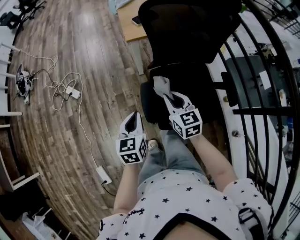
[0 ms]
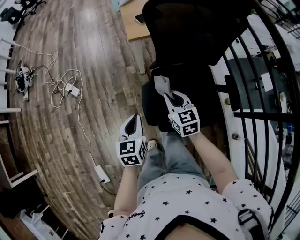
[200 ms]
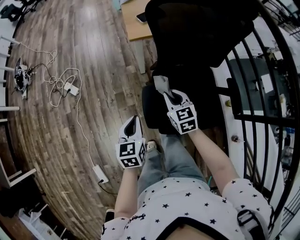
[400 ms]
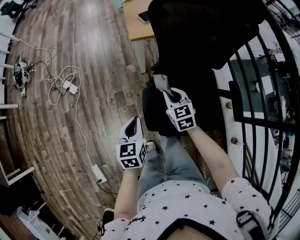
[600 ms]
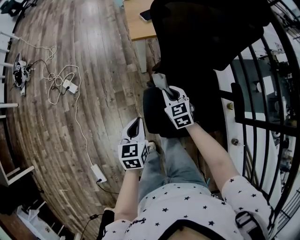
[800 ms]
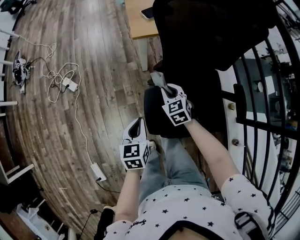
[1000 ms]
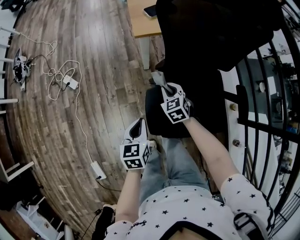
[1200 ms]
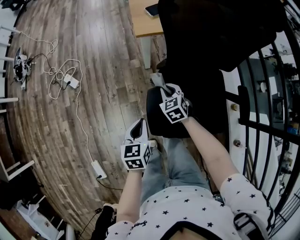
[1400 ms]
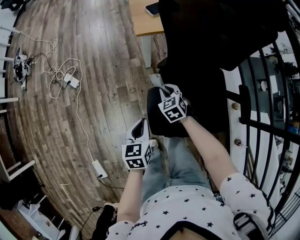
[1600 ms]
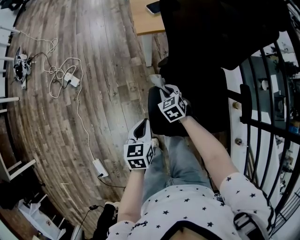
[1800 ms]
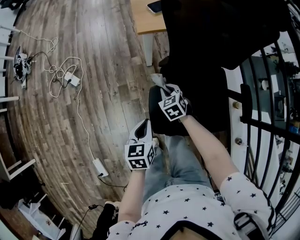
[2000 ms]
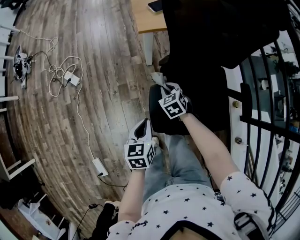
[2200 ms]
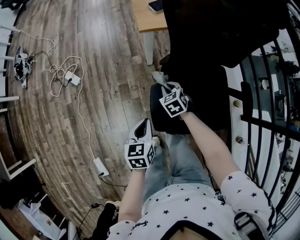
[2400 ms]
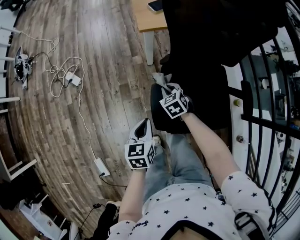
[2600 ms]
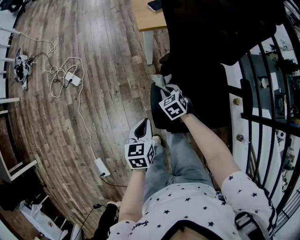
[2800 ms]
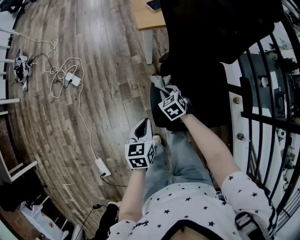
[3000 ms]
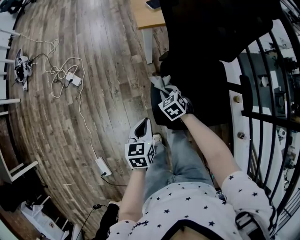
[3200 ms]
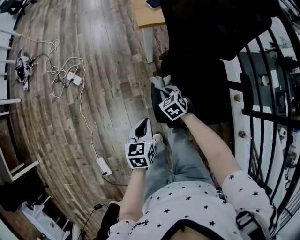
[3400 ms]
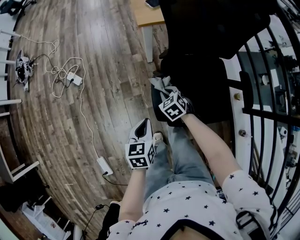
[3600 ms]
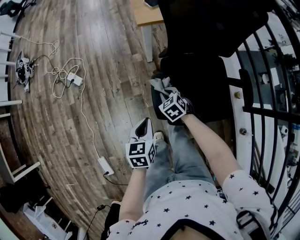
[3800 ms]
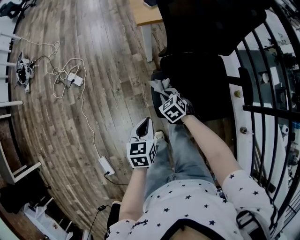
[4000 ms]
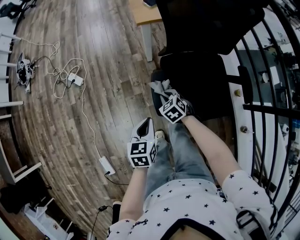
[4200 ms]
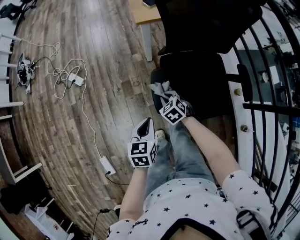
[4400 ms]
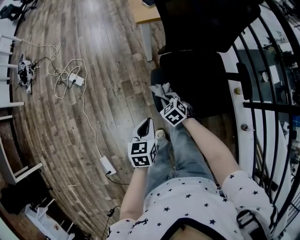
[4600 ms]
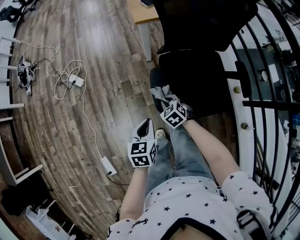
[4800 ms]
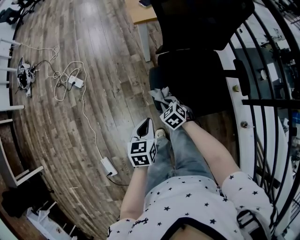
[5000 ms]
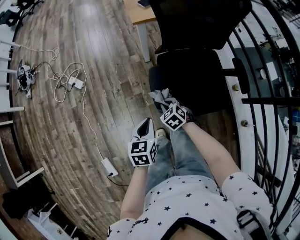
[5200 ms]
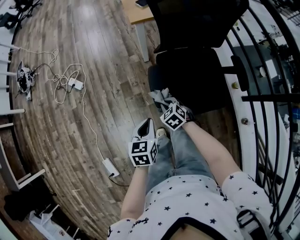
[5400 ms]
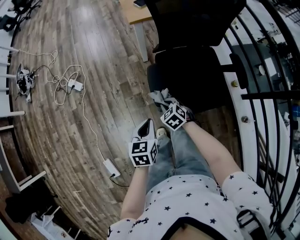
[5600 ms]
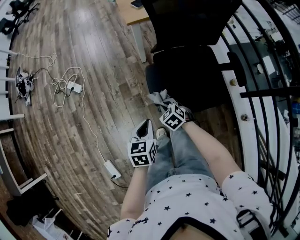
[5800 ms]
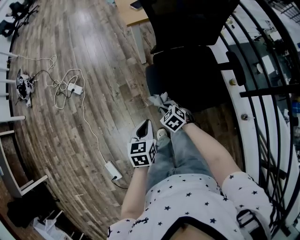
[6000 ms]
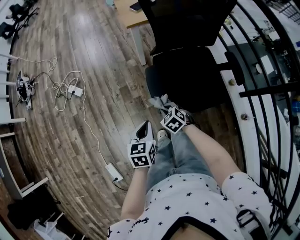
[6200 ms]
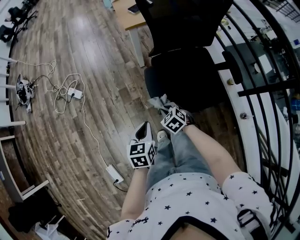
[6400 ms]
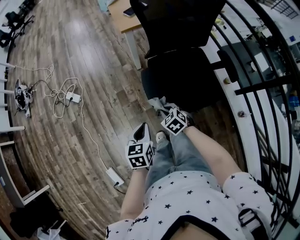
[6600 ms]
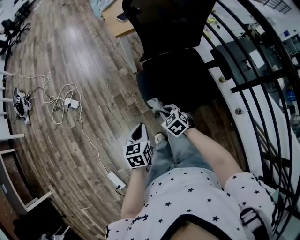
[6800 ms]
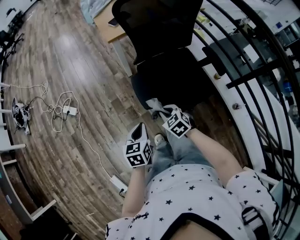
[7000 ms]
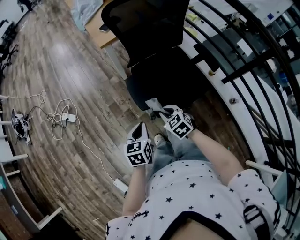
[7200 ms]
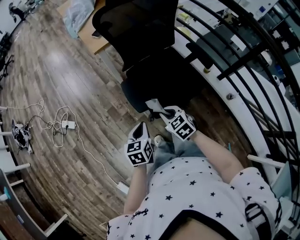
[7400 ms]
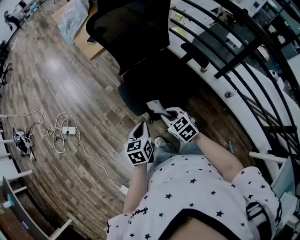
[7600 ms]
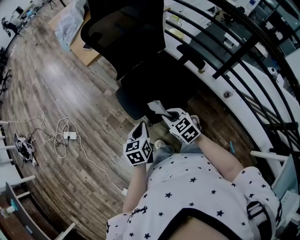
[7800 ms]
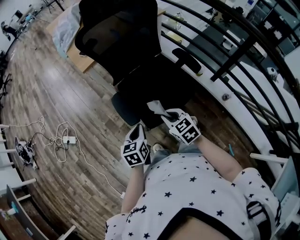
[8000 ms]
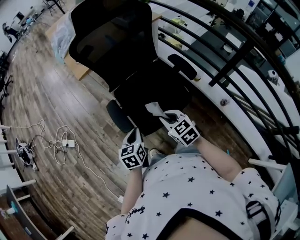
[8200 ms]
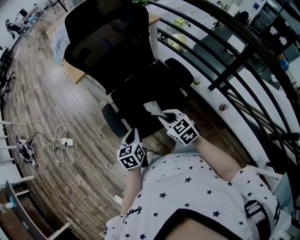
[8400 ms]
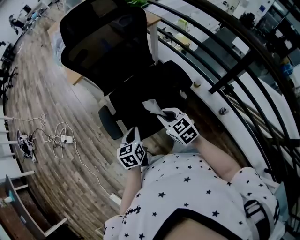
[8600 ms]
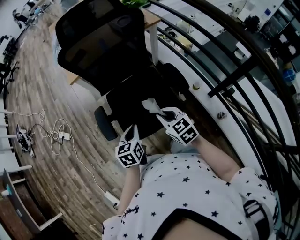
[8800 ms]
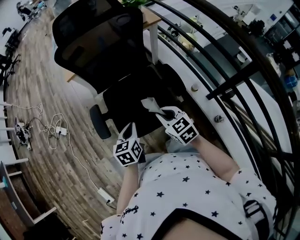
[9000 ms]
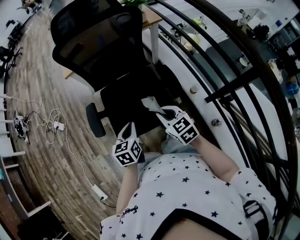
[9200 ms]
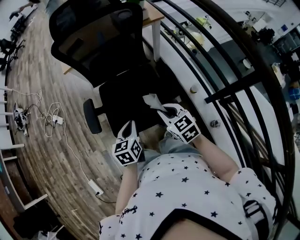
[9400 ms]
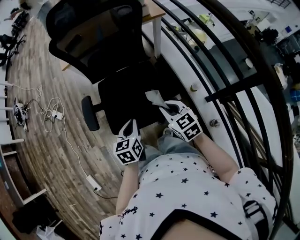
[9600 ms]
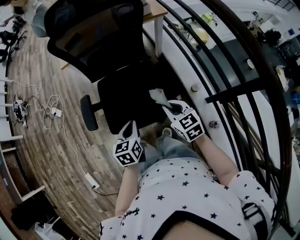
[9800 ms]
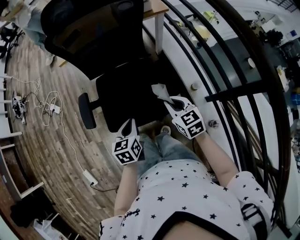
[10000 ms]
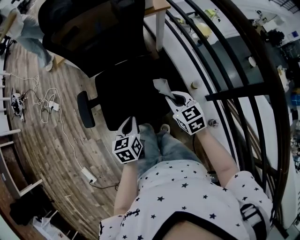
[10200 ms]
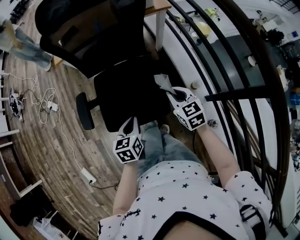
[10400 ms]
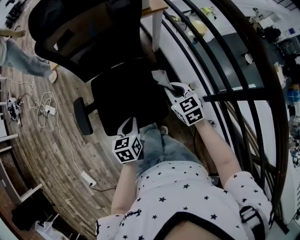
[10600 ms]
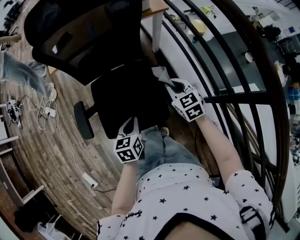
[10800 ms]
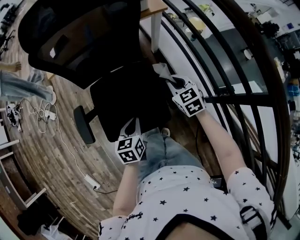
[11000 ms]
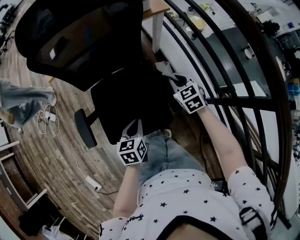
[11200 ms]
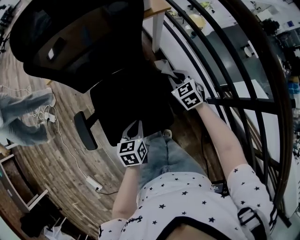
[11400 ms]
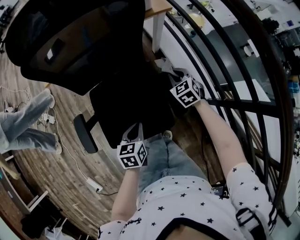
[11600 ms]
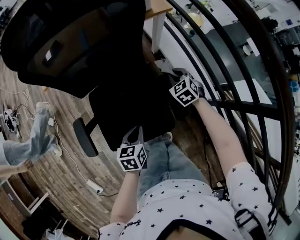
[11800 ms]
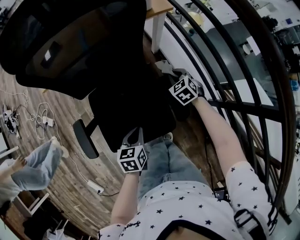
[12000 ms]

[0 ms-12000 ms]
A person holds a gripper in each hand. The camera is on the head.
0 ms to 1600 ms: The left gripper goes about 10 cm downward; the right gripper goes roughly 25 cm downward and forward, and turns by some 30 degrees.
1600 ms to 3000 ms: The grippers move only a little.
3000 ms to 4400 ms: The left gripper travels backward by some 5 cm. Meanwhile the right gripper is displaced backward by about 10 cm.
4400 ms to 6000 ms: The right gripper moves backward, about 10 cm.
6000 ms to 7600 ms: The left gripper goes approximately 5 cm to the right, while the right gripper heads upward, to the right and backward, covering roughly 20 cm, and rotates roughly 30 degrees.
7600 ms to 9000 ms: The two grippers go approximately 25 cm to the right.
9000 ms to 10400 ms: The right gripper shifts about 15 cm to the right and forward. The left gripper moves to the right, roughly 10 cm.
10400 ms to 12000 ms: The left gripper moves forward and downward, about 10 cm. The right gripper is displaced forward and downward by about 25 cm, and swivels some 30 degrees.

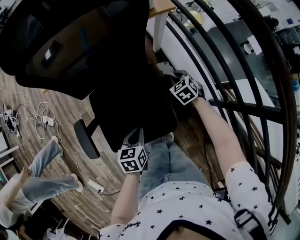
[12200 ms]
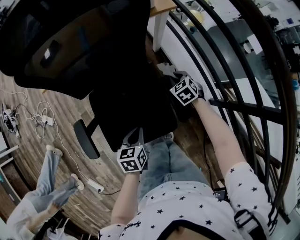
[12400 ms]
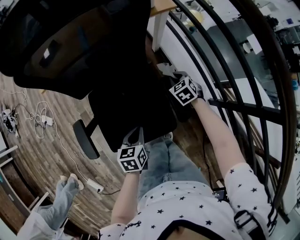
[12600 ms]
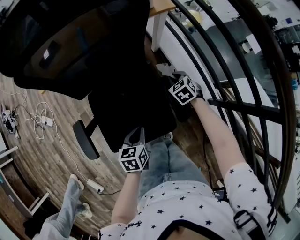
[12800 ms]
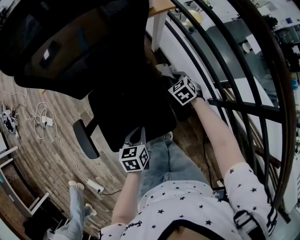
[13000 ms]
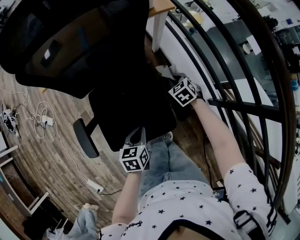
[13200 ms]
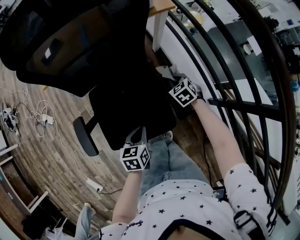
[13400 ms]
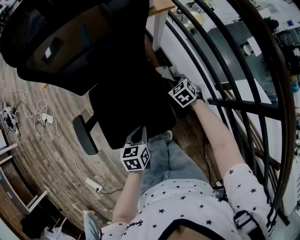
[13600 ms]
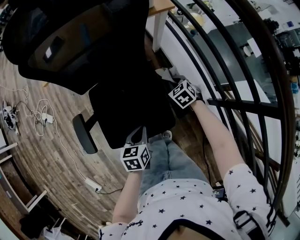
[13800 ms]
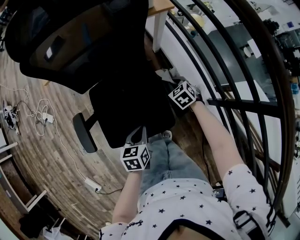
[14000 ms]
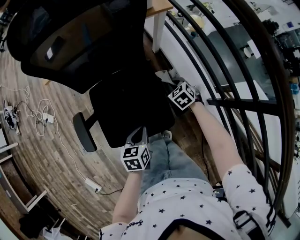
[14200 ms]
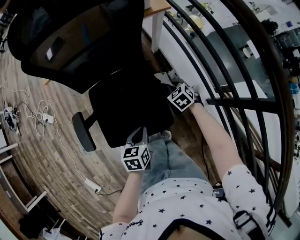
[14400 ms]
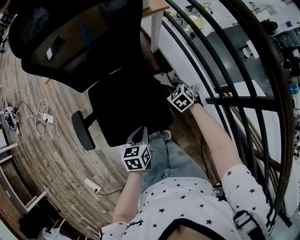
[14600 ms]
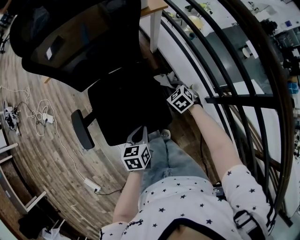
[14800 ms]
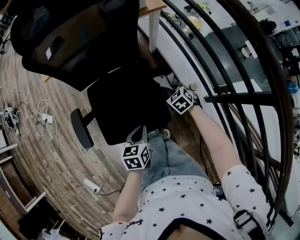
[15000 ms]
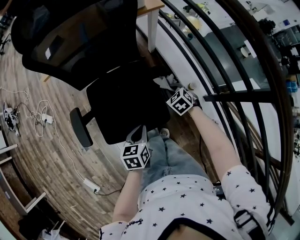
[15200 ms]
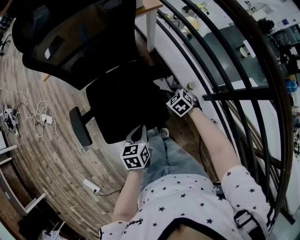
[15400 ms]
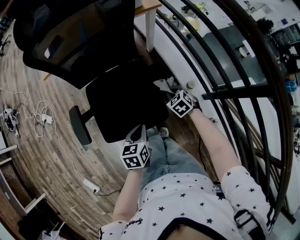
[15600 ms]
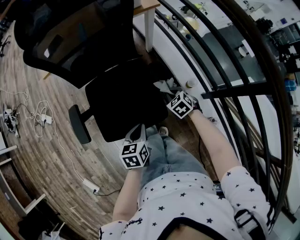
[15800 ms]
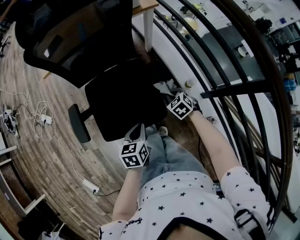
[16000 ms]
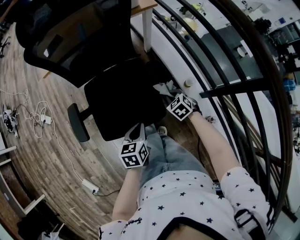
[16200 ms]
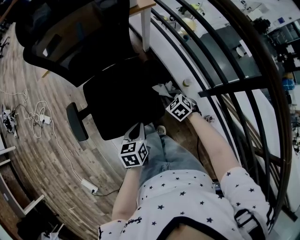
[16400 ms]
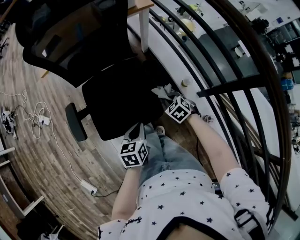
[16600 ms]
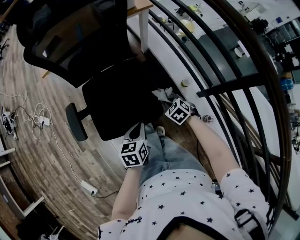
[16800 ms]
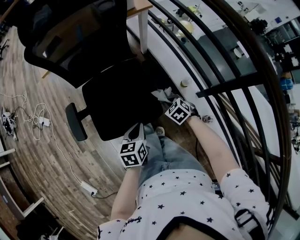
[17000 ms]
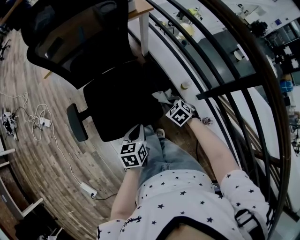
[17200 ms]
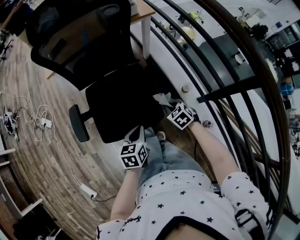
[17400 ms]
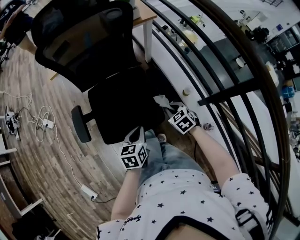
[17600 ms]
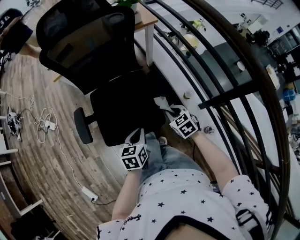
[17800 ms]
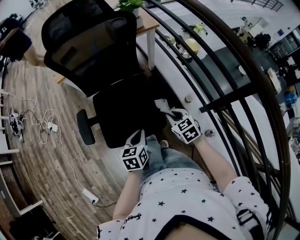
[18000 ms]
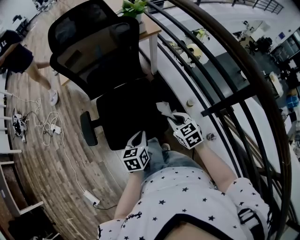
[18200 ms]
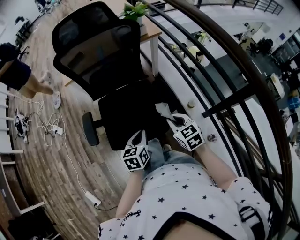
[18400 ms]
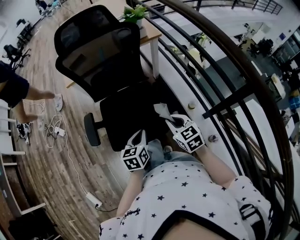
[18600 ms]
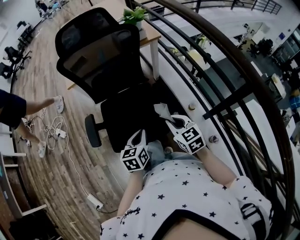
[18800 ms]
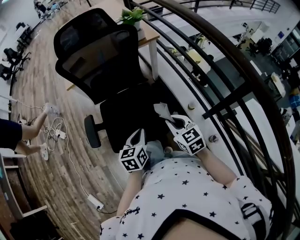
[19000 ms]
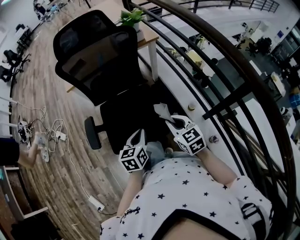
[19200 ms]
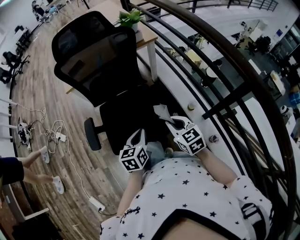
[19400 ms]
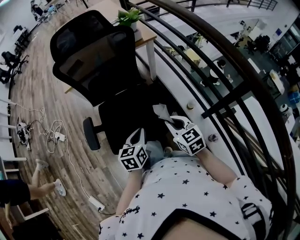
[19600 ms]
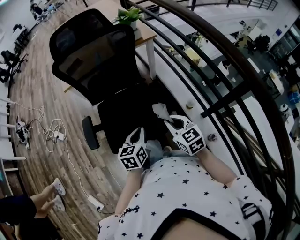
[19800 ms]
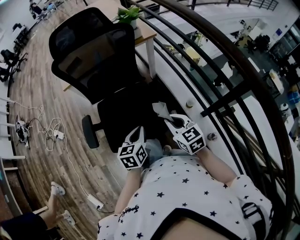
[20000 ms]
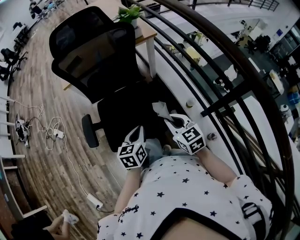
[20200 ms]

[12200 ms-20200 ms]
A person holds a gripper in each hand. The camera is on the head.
12200 ms to 13800 ms: The grippers move only a little.
13800 ms to 15400 ms: The right gripper shifts roughly 10 cm backward; the left gripper shifts by some 5 cm.
15400 ms to 17000 ms: The right gripper heads backward, covering some 10 cm.
17000 ms to 18600 ms: The left gripper travels upward by about 5 cm, while the right gripper heads upward, covering approximately 20 cm, and tips its fingers upward by roughly 30 degrees.
18600 ms to 20200 ms: The grippers move only a little.

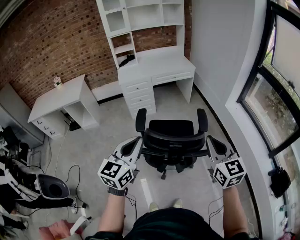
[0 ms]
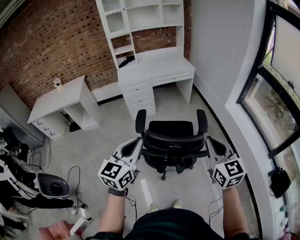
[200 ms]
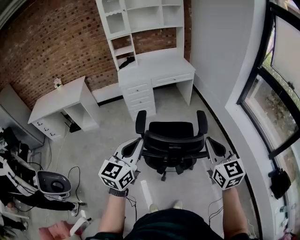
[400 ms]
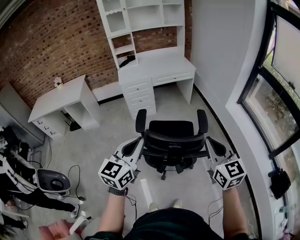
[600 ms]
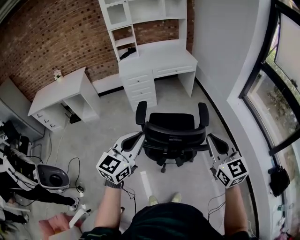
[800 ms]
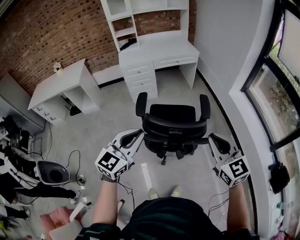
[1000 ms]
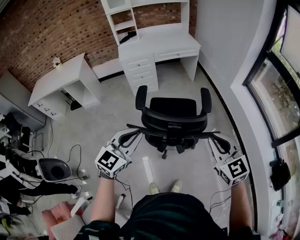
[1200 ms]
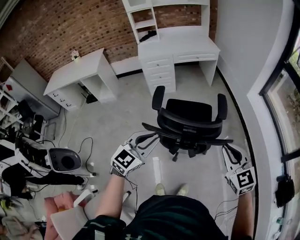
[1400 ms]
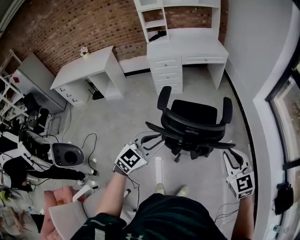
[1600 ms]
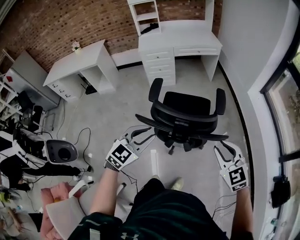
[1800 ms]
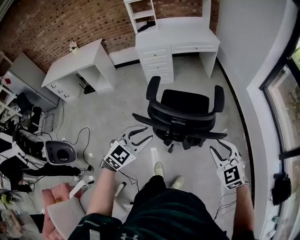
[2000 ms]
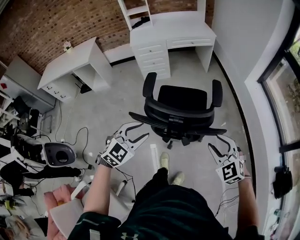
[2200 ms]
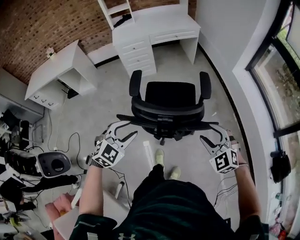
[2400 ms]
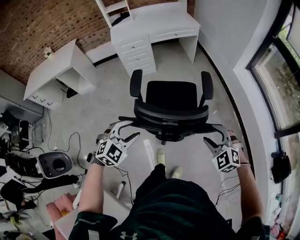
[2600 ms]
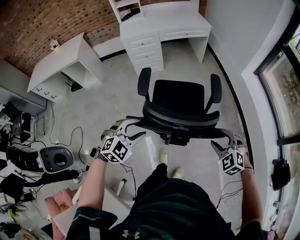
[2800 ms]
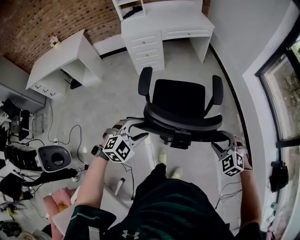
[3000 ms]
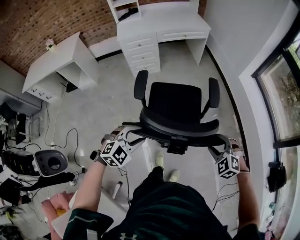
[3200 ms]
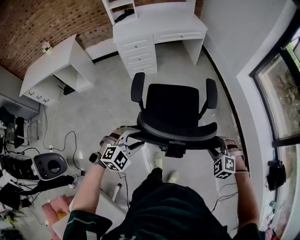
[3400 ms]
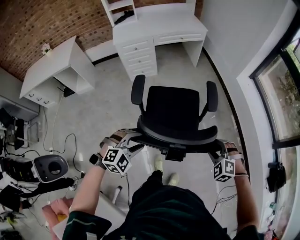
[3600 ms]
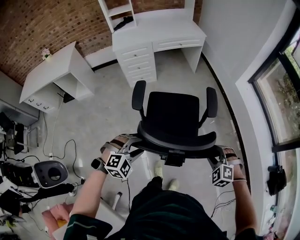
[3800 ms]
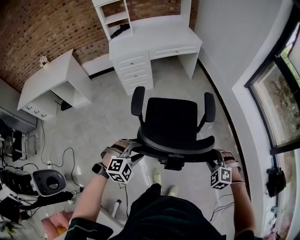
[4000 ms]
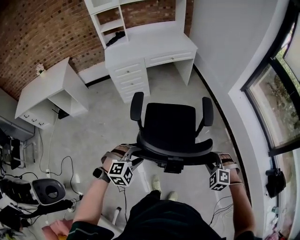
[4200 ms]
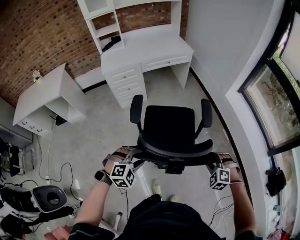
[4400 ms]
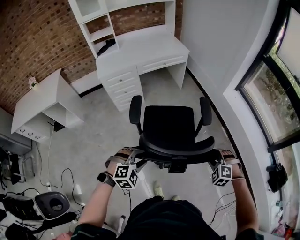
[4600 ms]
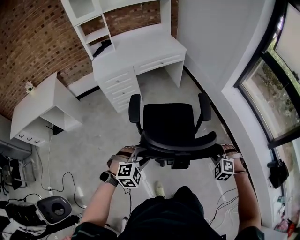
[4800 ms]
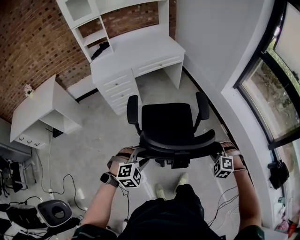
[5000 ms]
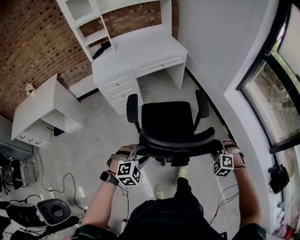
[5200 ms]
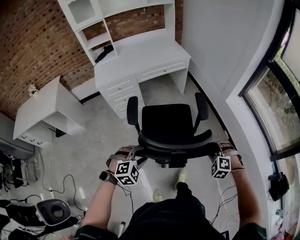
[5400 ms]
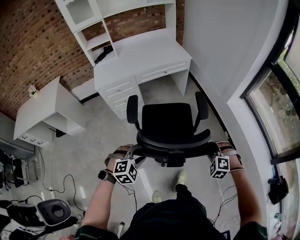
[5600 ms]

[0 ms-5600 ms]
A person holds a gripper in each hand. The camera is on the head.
0 ms to 1400 ms: Both grippers travel together downward, approximately 10 cm. The left gripper turns by about 20 degrees, while the right gripper turns by approximately 20 degrees.
1400 ms to 2800 ms: The left gripper is displaced downward and forward by approximately 10 cm, changes its angle by approximately 40 degrees, and opens up. The right gripper is displaced downward by roughly 15 cm, swivels approximately 40 degrees, and opens.
2800 ms to 4200 ms: The grippers both shift forward and downward by about 10 cm.
4200 ms to 5600 ms: The two grippers go approximately 20 cm forward.
